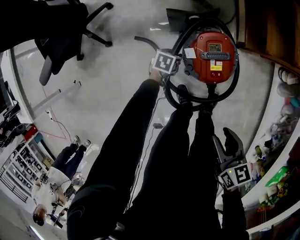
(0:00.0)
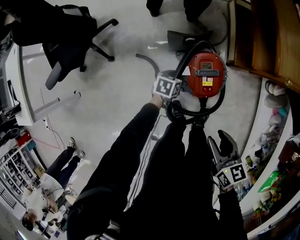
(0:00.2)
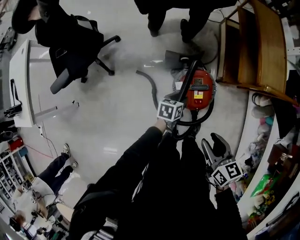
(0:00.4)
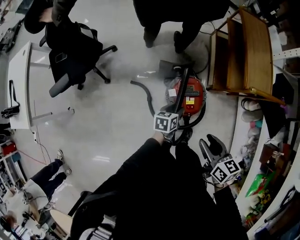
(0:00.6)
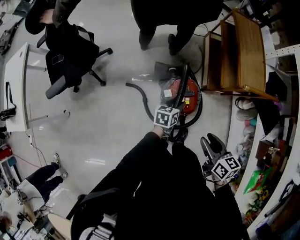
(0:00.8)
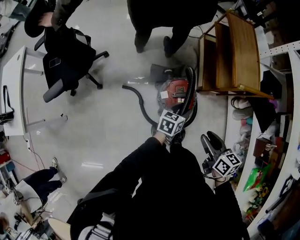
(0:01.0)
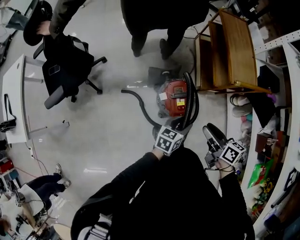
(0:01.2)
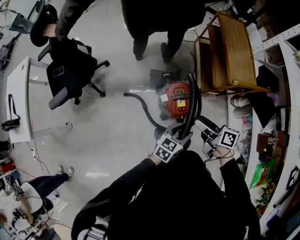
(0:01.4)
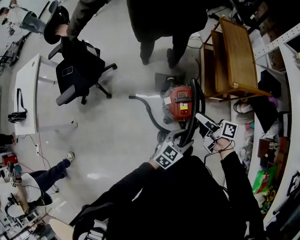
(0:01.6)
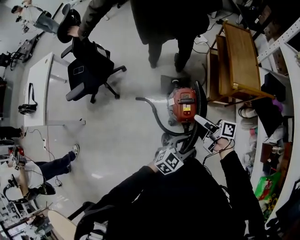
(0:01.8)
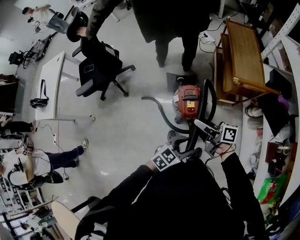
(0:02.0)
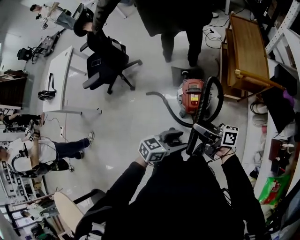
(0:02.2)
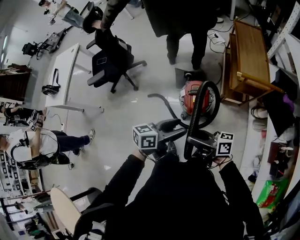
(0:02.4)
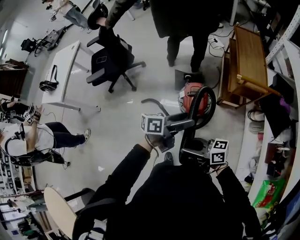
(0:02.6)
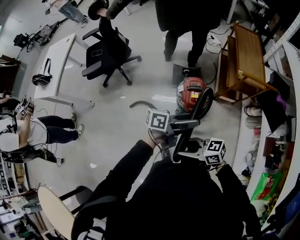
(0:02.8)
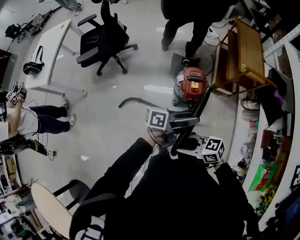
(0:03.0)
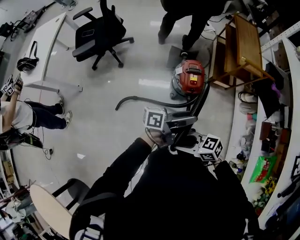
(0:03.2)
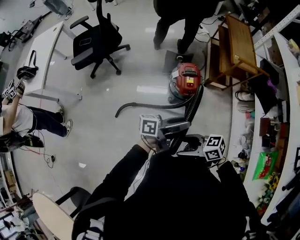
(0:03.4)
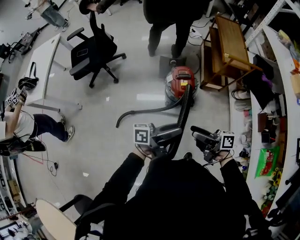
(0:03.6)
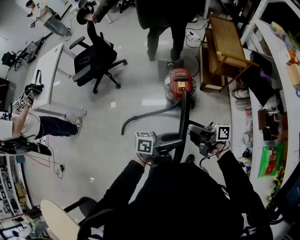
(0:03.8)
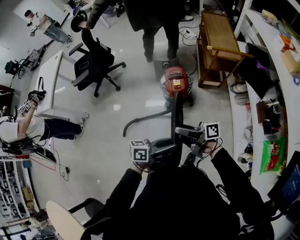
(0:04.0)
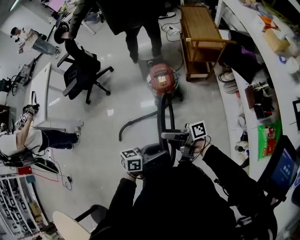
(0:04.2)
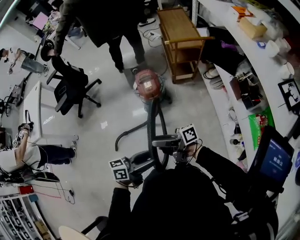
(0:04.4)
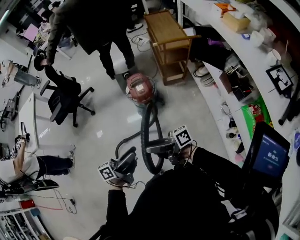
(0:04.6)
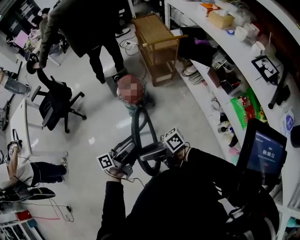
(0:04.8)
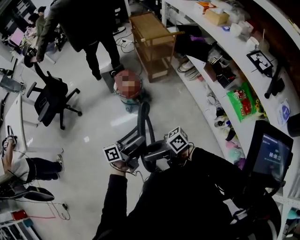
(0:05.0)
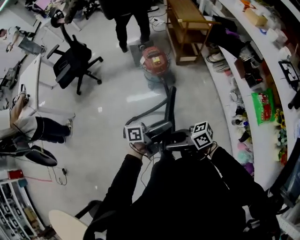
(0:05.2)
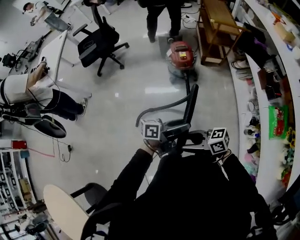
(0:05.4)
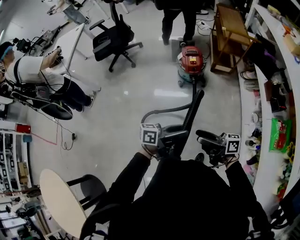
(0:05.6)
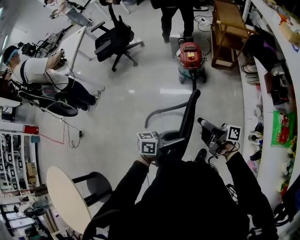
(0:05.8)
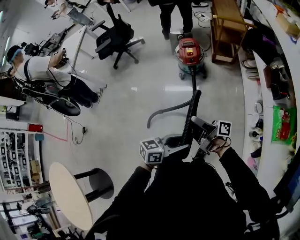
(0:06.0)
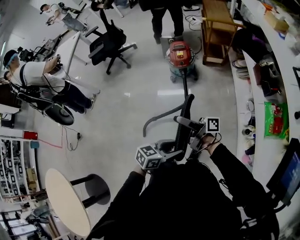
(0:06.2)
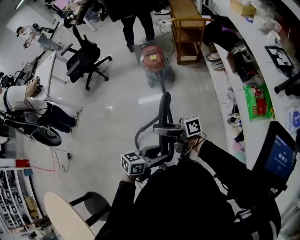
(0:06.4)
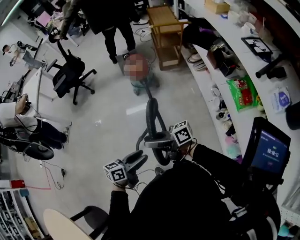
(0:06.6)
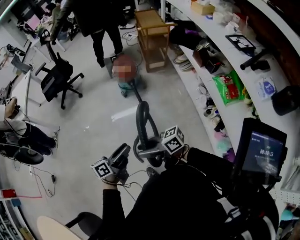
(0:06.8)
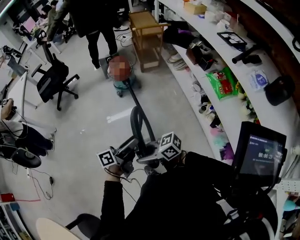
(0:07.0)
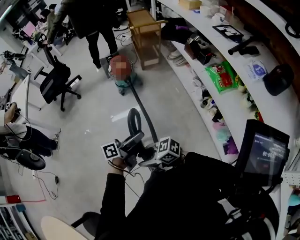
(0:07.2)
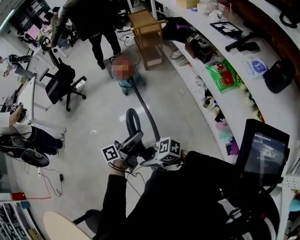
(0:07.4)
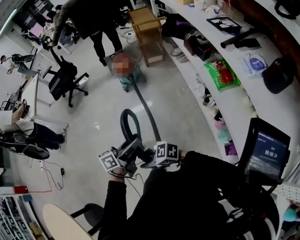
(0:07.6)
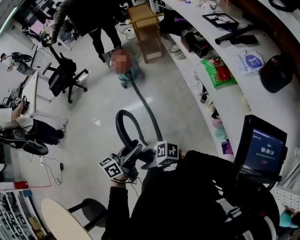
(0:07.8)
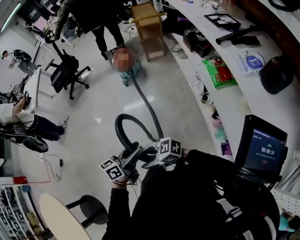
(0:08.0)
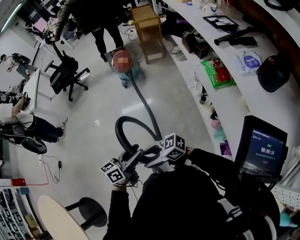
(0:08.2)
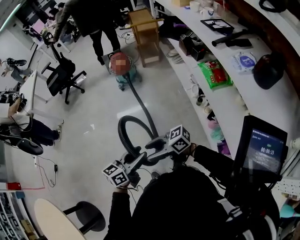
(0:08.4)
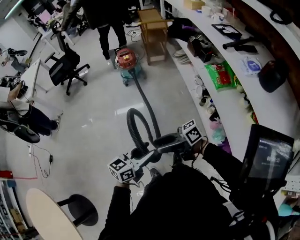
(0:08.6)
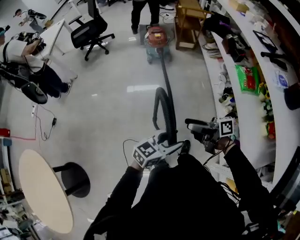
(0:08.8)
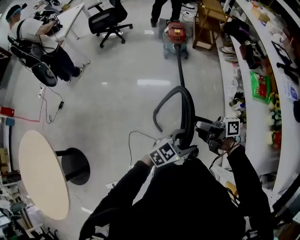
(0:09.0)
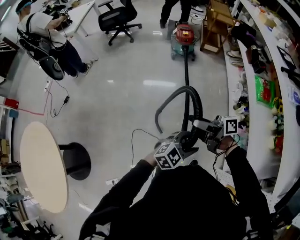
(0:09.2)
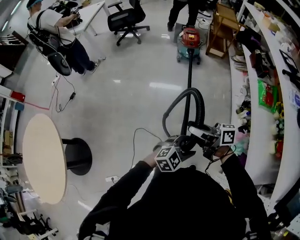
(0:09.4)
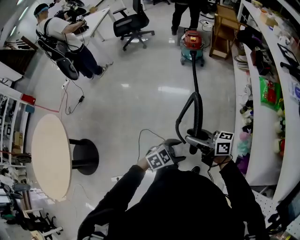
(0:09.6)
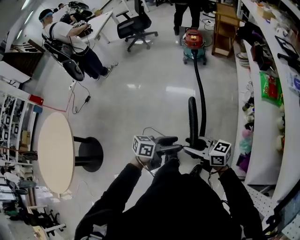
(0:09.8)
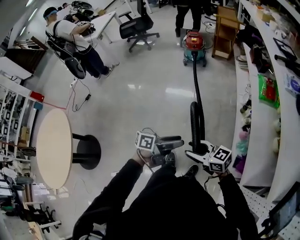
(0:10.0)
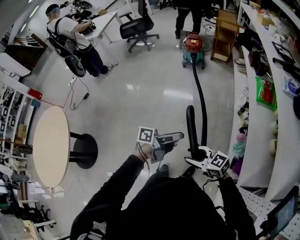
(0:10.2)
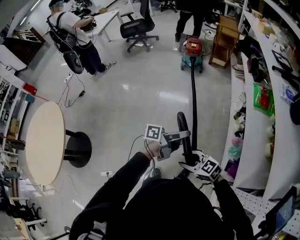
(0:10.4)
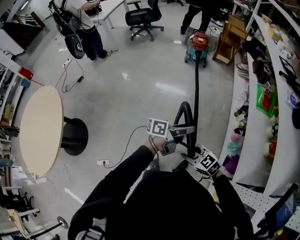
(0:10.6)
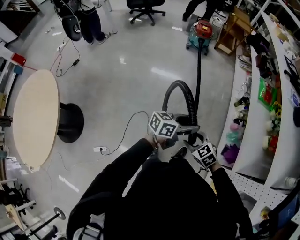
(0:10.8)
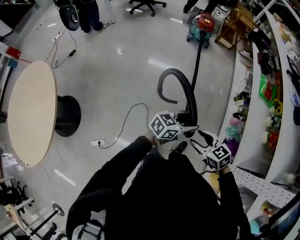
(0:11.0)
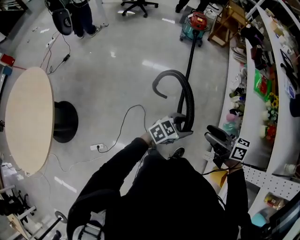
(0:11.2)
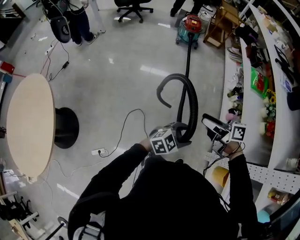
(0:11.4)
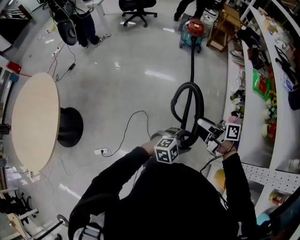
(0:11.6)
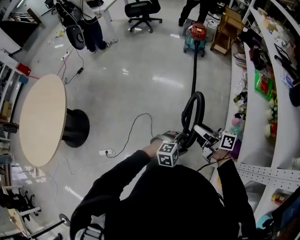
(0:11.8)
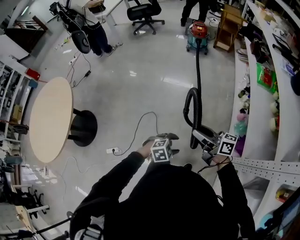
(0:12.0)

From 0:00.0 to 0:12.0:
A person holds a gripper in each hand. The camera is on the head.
From 0:00.0 to 0:01.6: The left gripper heads upward, backward and to the right, covering approximately 50 cm, and tilts its fingers some 40 degrees upward. Meanwhile the right gripper heads upward and forward, covering approximately 20 cm, turns by some 40 degrees, and opens up.
From 0:01.6 to 0:03.0: The right gripper shifts by roughly 40 cm, swivels roughly 60 degrees, and closes. Meanwhile the left gripper changes place by approximately 20 cm, and rotates around the line of its fingers by roughly 50 degrees, counterclockwise from behind.
From 0:03.0 to 0:04.4: The left gripper shifts by some 30 cm, and turns by roughly 20 degrees. The right gripper ends up about 20 cm from where it was, and tilts its fingers some 40 degrees upward.
From 0:04.4 to 0:06.0: The right gripper ends up roughly 20 cm from where it was, while the left gripper ends up some 25 cm from where it was.
From 0:06.0 to 0:07.6: The right gripper ends up about 40 cm from where it was, tilts its fingers approximately 30 degrees downward, and closes. Meanwhile the left gripper ends up some 20 cm from where it was.
From 0:07.6 to 0:09.0: The right gripper shifts some 5 cm upward, rotates around the line of its fingers by some 50 degrees, clockwise from behind, and opens its fingers. The left gripper shifts by approximately 25 cm, and rotates around the line of its fingers by approximately 50 degrees, clockwise from behind.
From 0:09.0 to 0:10.4: The right gripper ends up roughly 35 cm from where it was, twists some 50 degrees counterclockwise, seen from behind, and closes; the left gripper goes downward and returns, about 5 cm each way, and rolls counterclockwise, seen from behind, by approximately 70 degrees.
From 0:10.4 to 0:12.0: The left gripper changes place by roughly 35 cm, and points its fingers about 60 degrees further downward; the right gripper heads upward, covering about 10 cm, angles its fingers upward, by some 30 degrees, and opens, then closes again.

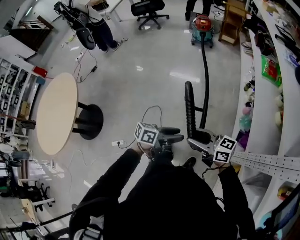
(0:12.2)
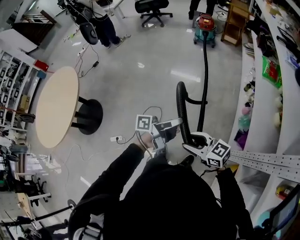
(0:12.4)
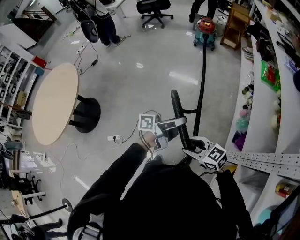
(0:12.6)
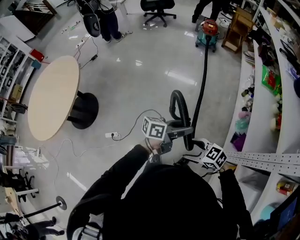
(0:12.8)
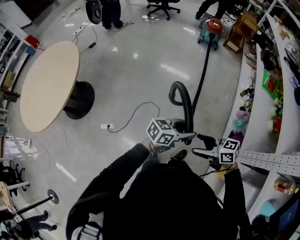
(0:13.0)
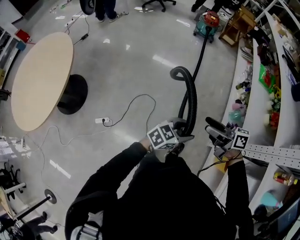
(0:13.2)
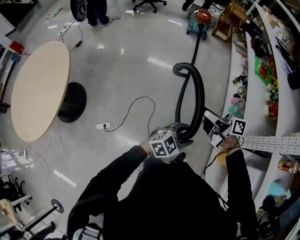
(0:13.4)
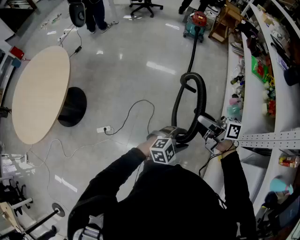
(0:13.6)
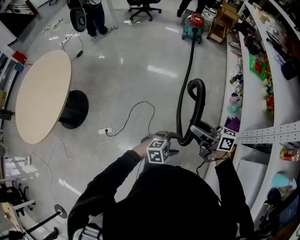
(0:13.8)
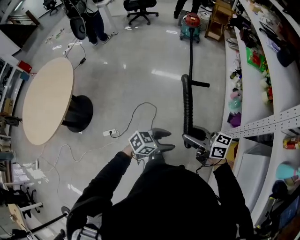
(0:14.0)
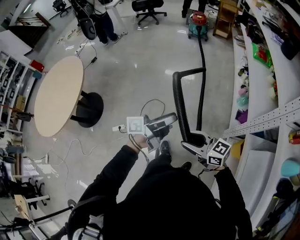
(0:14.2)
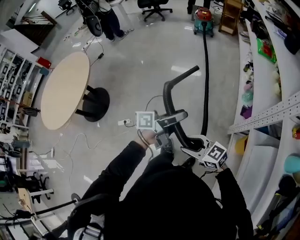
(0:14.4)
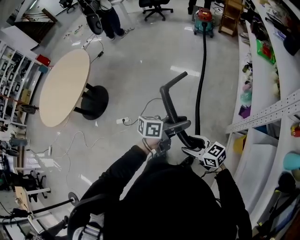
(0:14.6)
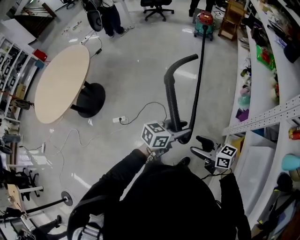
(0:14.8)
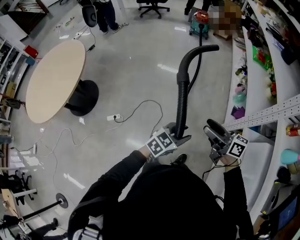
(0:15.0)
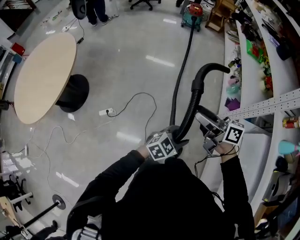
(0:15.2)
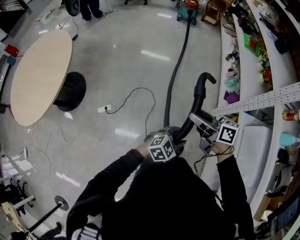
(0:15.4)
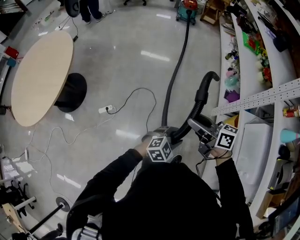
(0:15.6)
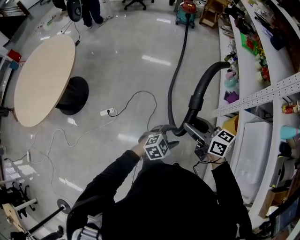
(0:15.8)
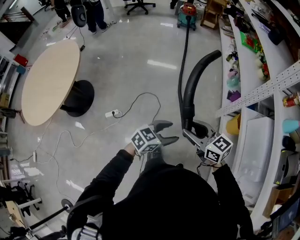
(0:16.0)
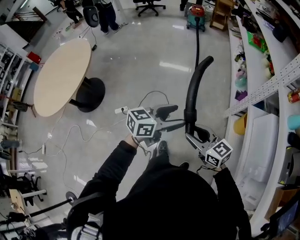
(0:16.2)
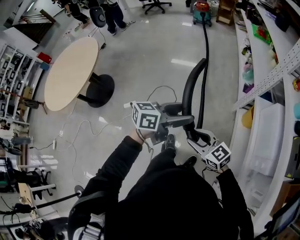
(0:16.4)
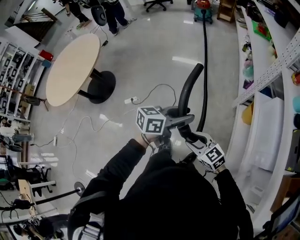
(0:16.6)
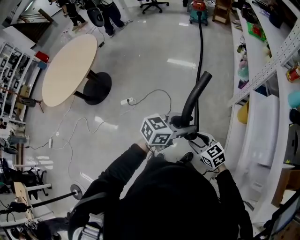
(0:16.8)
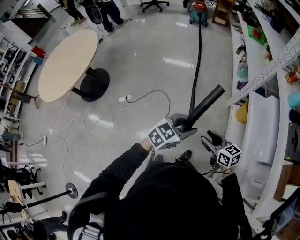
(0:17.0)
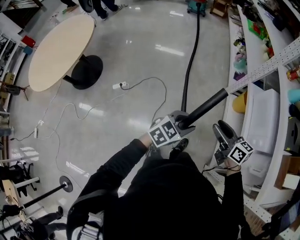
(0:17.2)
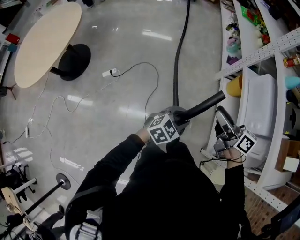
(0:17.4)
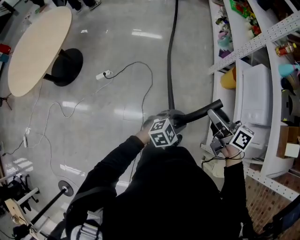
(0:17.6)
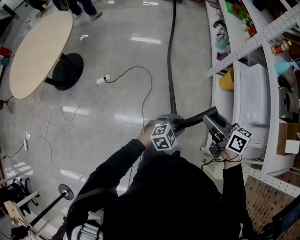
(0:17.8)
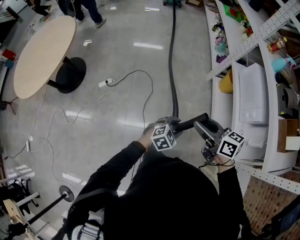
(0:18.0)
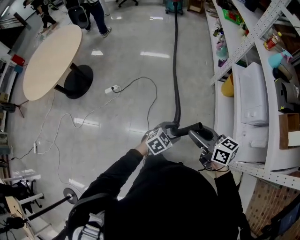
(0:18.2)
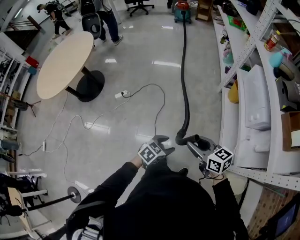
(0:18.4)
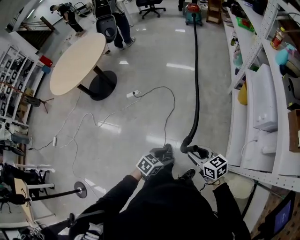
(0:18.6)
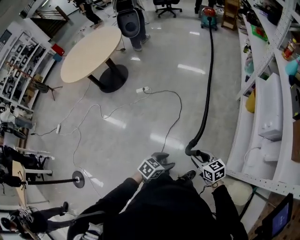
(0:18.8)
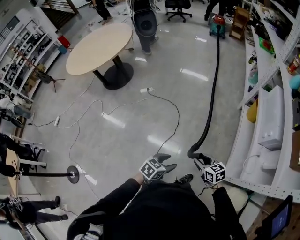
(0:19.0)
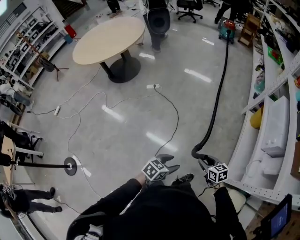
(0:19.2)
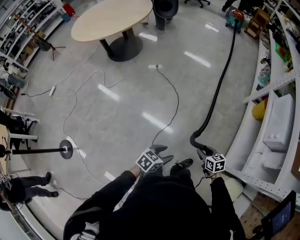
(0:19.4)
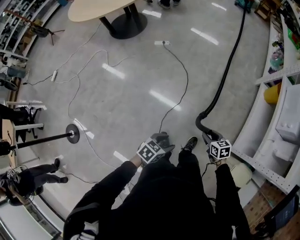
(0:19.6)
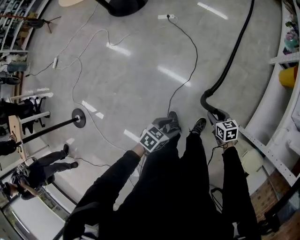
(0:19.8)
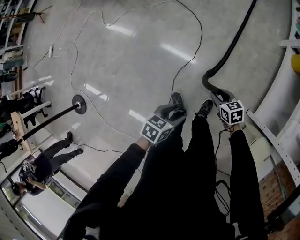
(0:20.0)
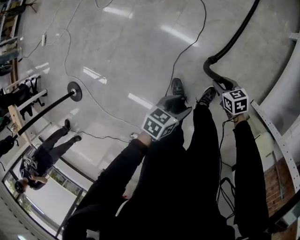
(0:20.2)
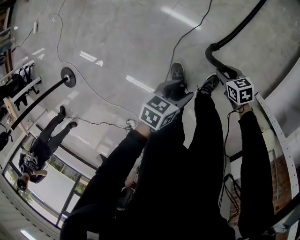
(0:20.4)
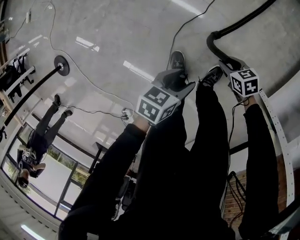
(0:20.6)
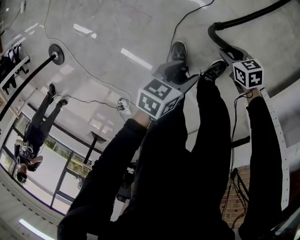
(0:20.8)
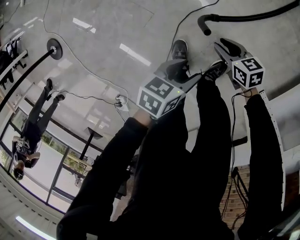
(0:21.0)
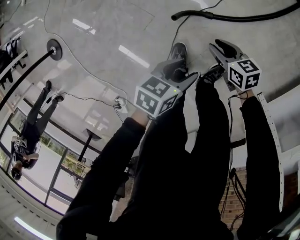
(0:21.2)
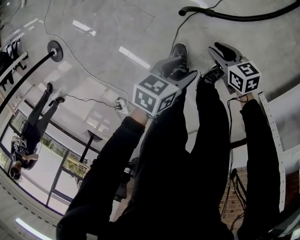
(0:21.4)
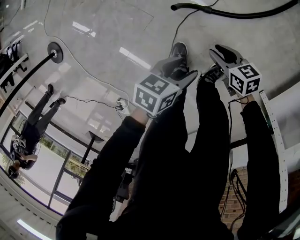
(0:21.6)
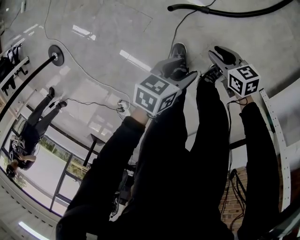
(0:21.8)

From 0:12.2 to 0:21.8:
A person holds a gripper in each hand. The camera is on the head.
From 0:12.2 to 0:13.8: The right gripper goes downward and returns, approximately 10 cm each way, and opens, then closes once more, while the left gripper moves about 25 cm, and rotates around the line of its fingers by about 60 degrees, clockwise from behind.
From 0:13.8 to 0:15.4: The left gripper reaches approximately 15 cm upward, then returns, while the right gripper goes up and down, roughly 15 cm each way, reversing 2 times.
From 0:15.4 to 0:17.0: The left gripper ends up roughly 25 cm from where it was, and opens, then closes again; the right gripper ends up about 40 cm from where it was, and swivels some 30 degrees.
From 0:17.0 to 0:18.6: The two grippers go some 35 cm backward. The left gripper rotates roughly 30 degrees.
From 0:18.6 to 0:20.2: The right gripper travels downward by some 40 cm, and swivels approximately 30 degrees. The left gripper ends up approximately 35 cm from where it was, and swivels roughly 30 degrees.
From 0:20.2 to 0:21.8: Both grippers travel together downward, some 15 cm.

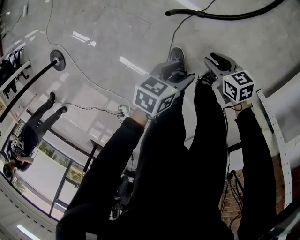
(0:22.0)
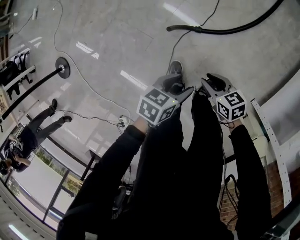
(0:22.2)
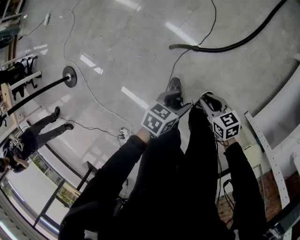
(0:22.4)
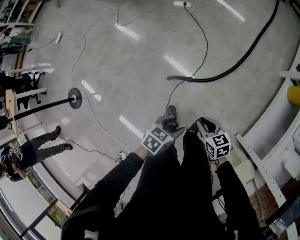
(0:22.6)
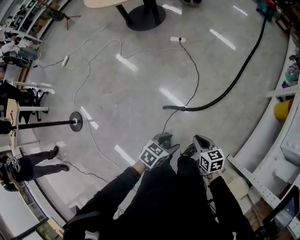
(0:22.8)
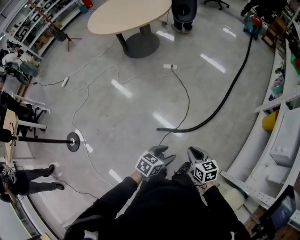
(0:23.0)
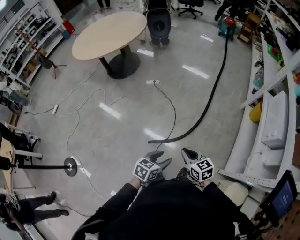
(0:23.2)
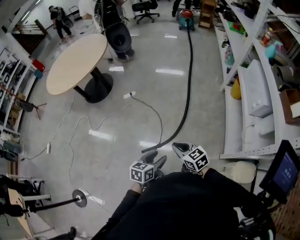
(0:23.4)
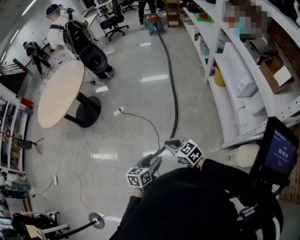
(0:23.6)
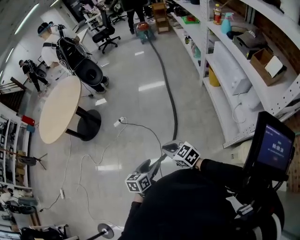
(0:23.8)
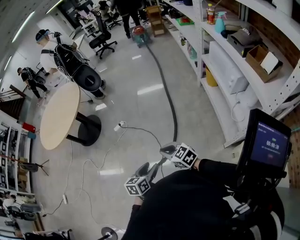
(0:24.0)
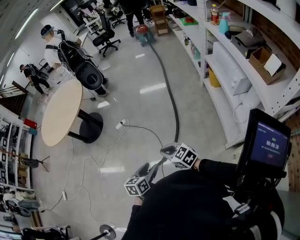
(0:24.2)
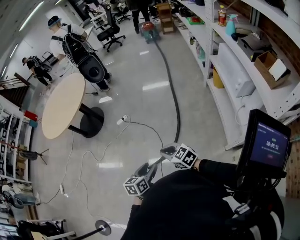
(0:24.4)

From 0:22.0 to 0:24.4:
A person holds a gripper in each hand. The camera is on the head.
From 0:22.0 to 0:23.2: The two grippers go some 40 cm upward. The left gripper turns by approximately 20 degrees. The right gripper changes its angle by roughly 30 degrees.
